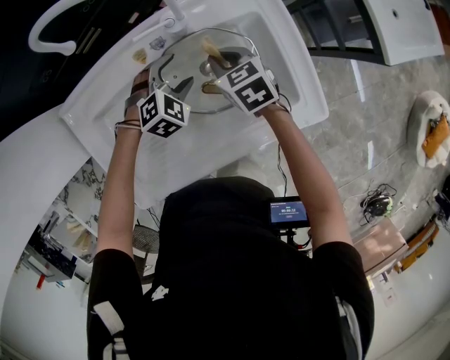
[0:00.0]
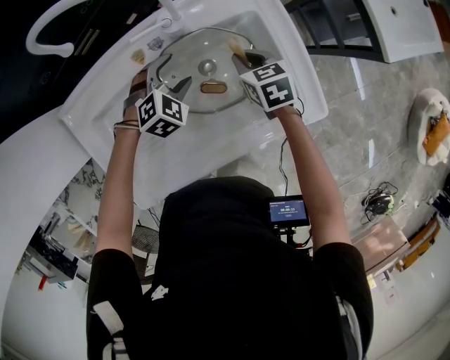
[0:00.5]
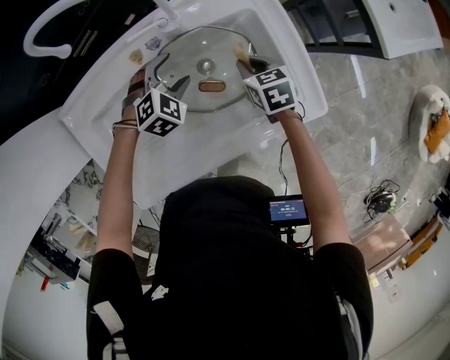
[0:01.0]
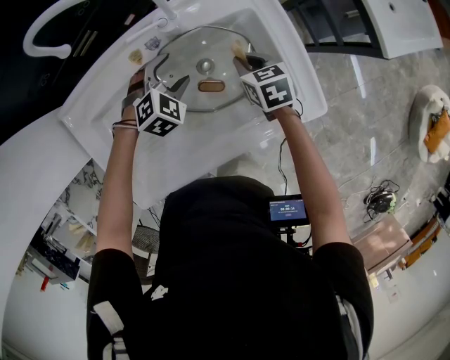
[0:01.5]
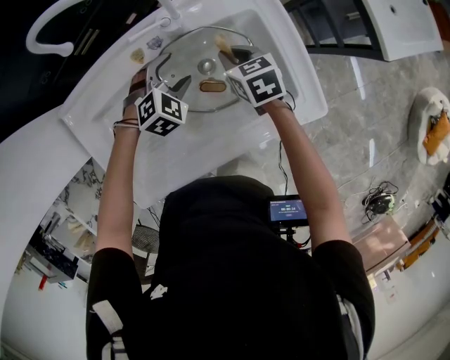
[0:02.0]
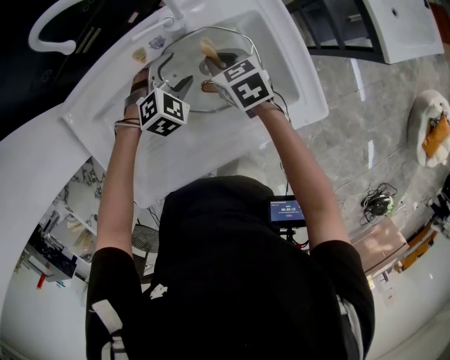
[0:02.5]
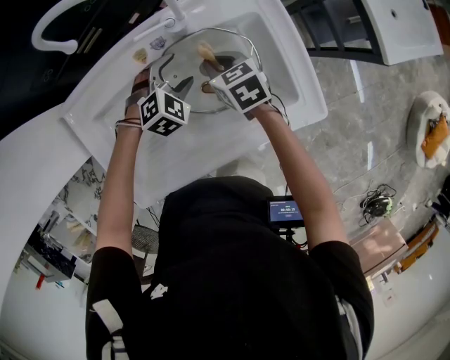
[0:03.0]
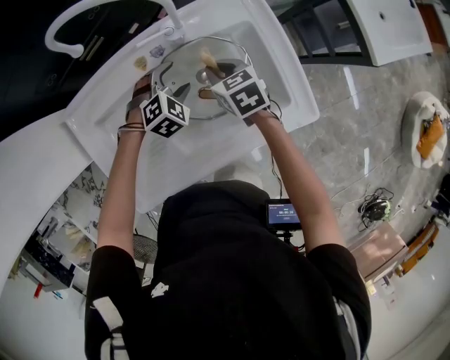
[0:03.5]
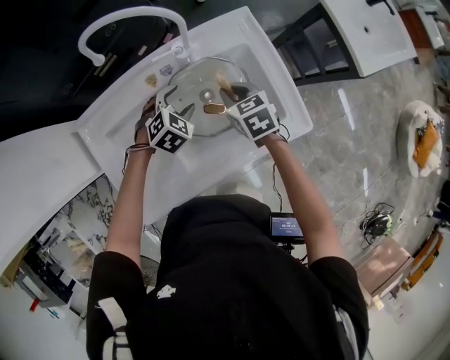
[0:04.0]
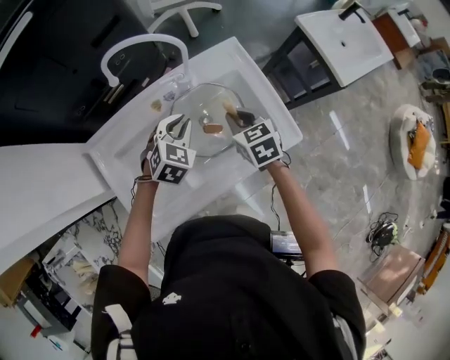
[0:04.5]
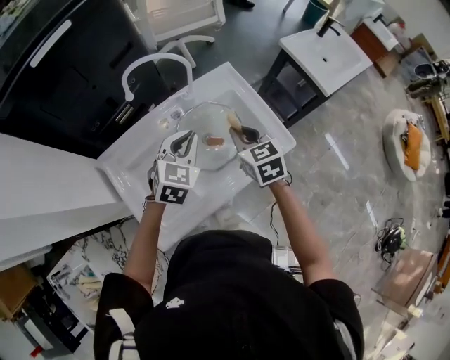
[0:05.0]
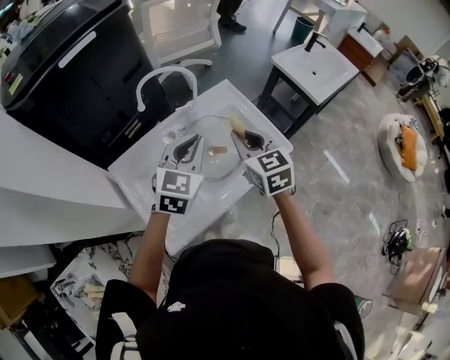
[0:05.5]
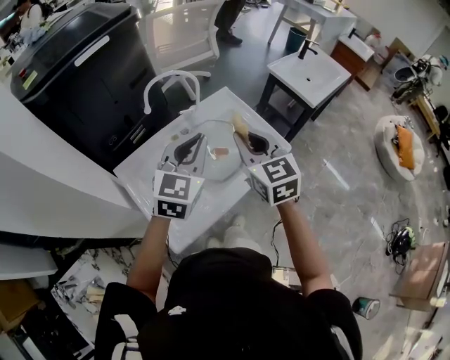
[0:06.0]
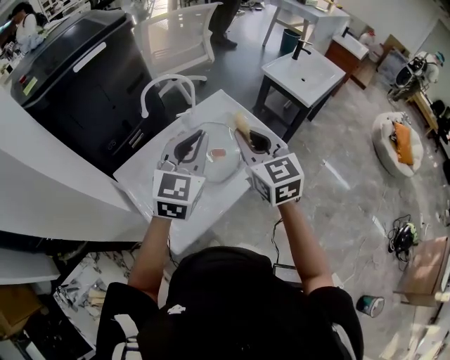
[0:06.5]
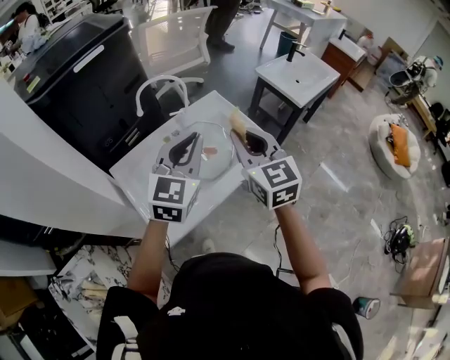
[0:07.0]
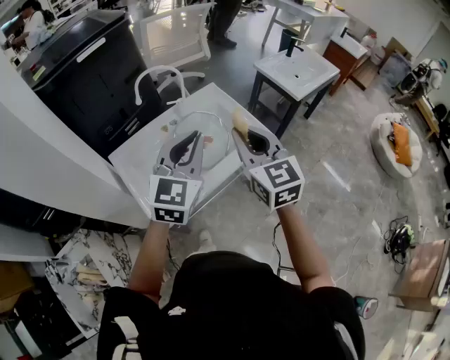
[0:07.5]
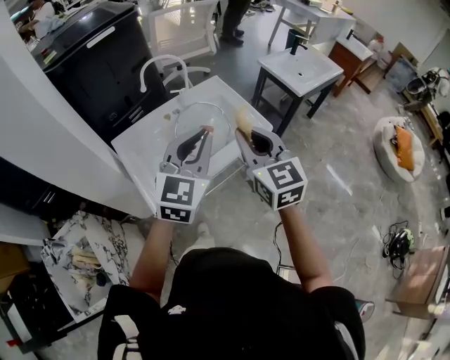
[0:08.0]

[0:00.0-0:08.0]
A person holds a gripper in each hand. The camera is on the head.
0:02.0 to 0:04.0: The right gripper goes some 5 cm upward.
0:04.0 to 0:06.0: Both grippers travel together upward and backward, approximately 35 cm. The left gripper tilts its fingers about 50 degrees upward, and closes up, while the right gripper angles its fingers upward, by roughly 40 degrees.
0:06.0 to 0:08.0: Both grippers move backward and to the right, some 20 cm.

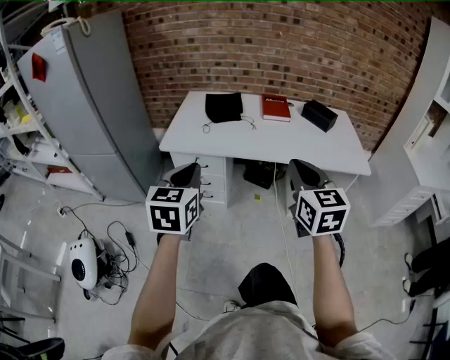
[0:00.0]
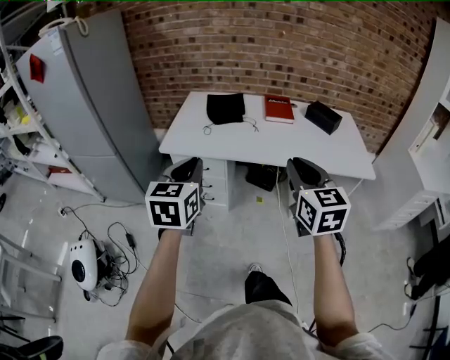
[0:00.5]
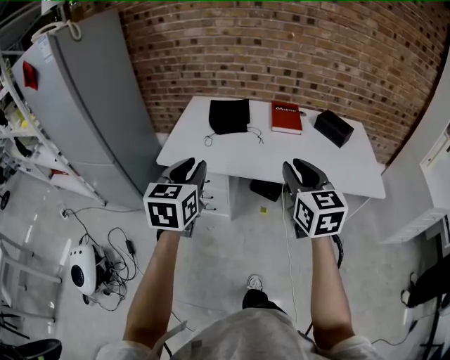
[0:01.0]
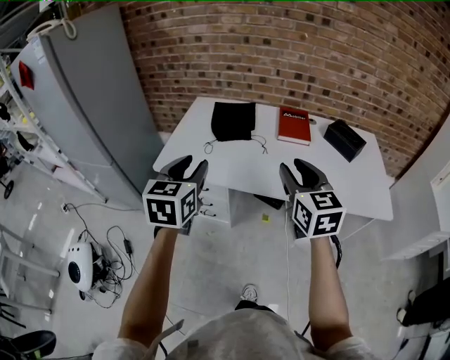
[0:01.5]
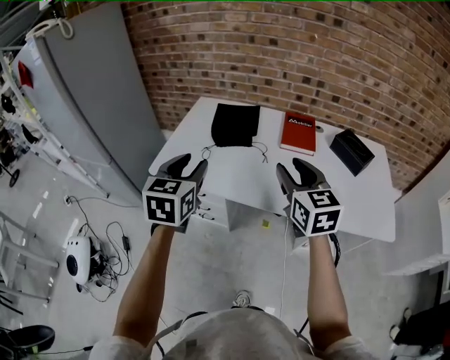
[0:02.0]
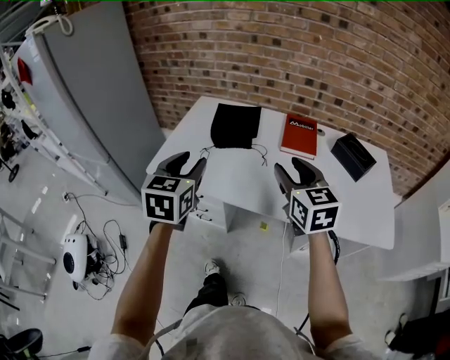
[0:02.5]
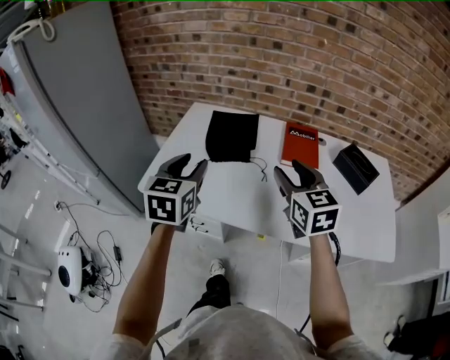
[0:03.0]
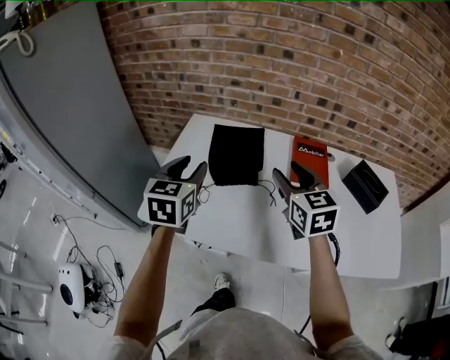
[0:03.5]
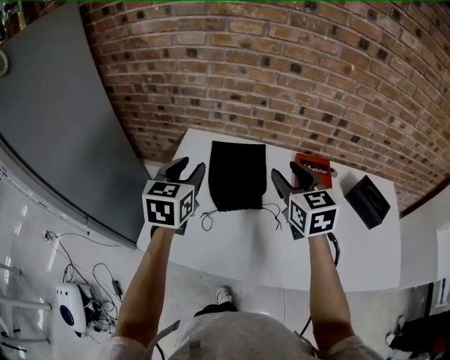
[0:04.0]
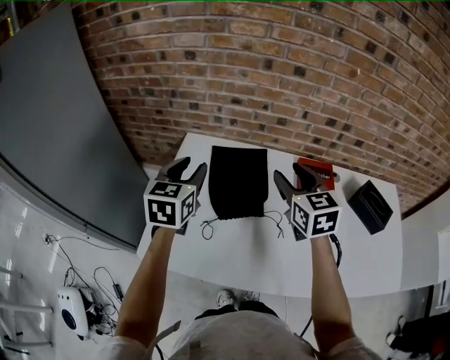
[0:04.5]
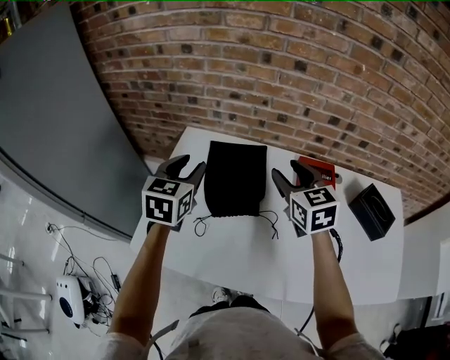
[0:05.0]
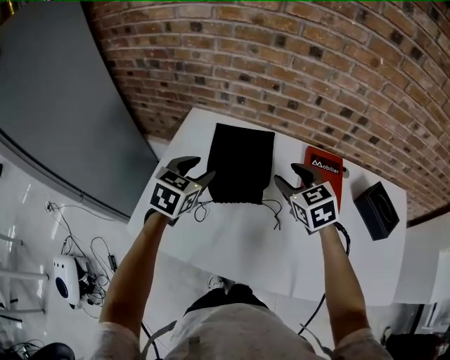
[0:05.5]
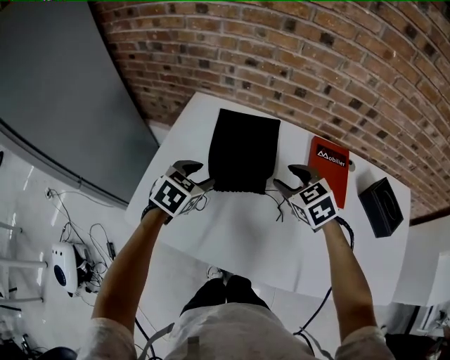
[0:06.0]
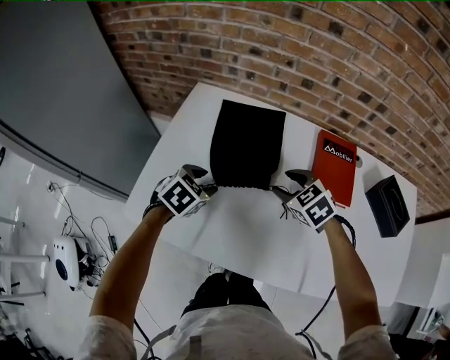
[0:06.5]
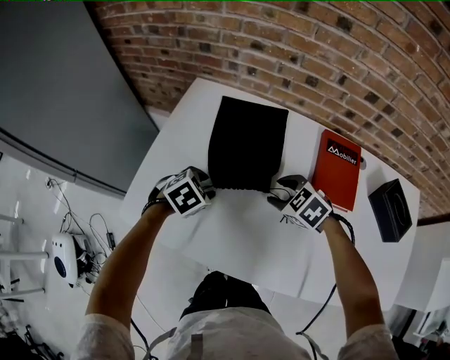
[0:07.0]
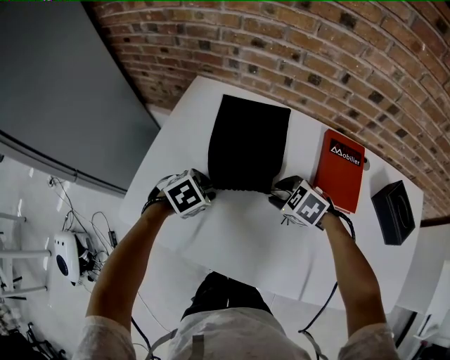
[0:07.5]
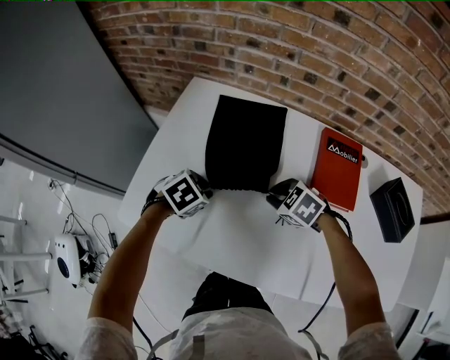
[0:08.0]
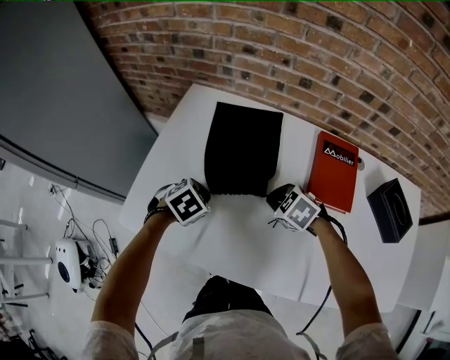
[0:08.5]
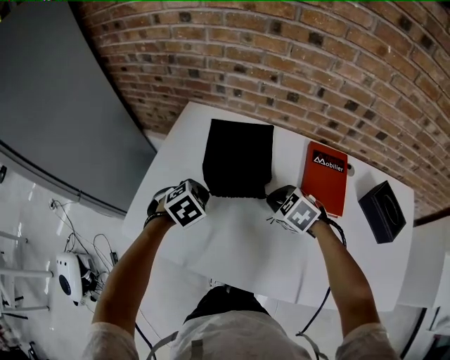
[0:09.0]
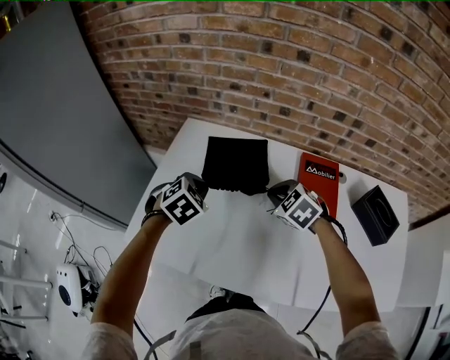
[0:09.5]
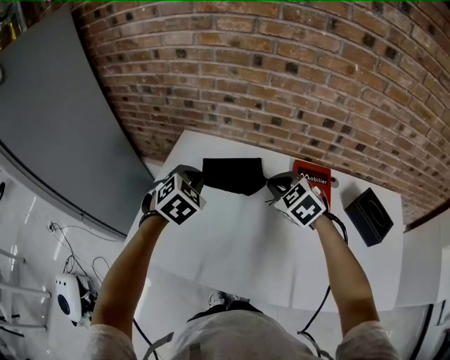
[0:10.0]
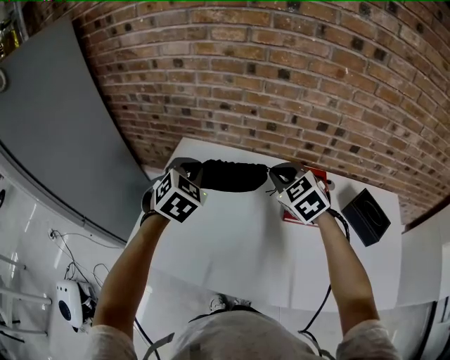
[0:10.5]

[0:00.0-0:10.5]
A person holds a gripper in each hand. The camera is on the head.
0:00.0 to 0:02.0: The grippers both shift forward by about 30 cm. The right gripper opens up; the left gripper opens its fingers.
0:02.0 to 0:04.0: Both grippers move forward, approximately 30 cm.
0:04.0 to 0:06.5: Both grippers travel together downward, some 20 cm. The right gripper angles its fingers downward, by roughly 30 degrees; the left gripper points its fingers about 40 degrees further downward.
0:06.5 to 0:08.5: The right gripper is displaced downward by approximately 5 cm, and closes. Meanwhile the left gripper moves about 5 cm, and closes its fingers.
0:08.5 to 0:10.5: The two grippers go approximately 25 cm upward. The left gripper tips its fingers upward by roughly 30 degrees; the right gripper turns by some 40 degrees.

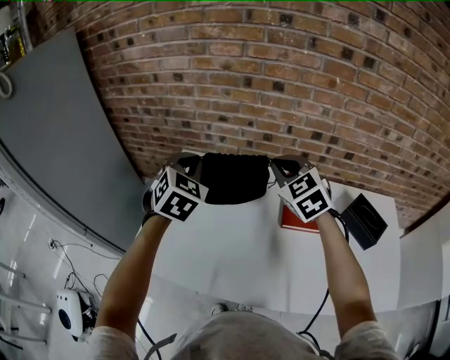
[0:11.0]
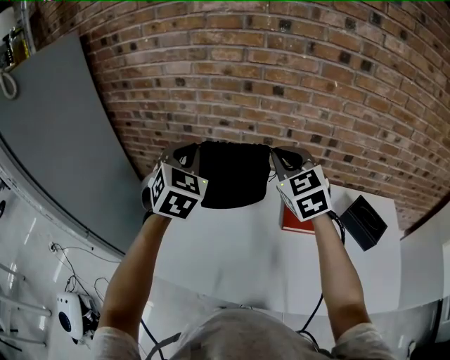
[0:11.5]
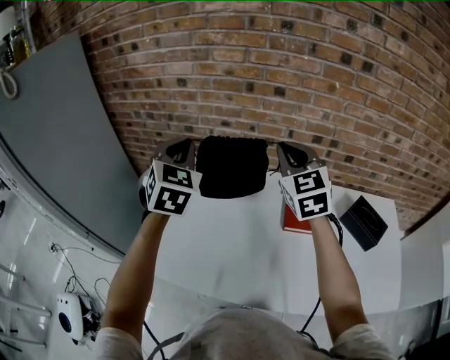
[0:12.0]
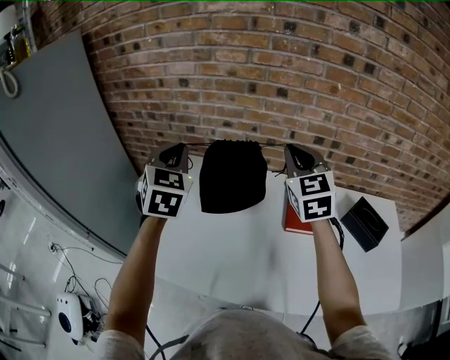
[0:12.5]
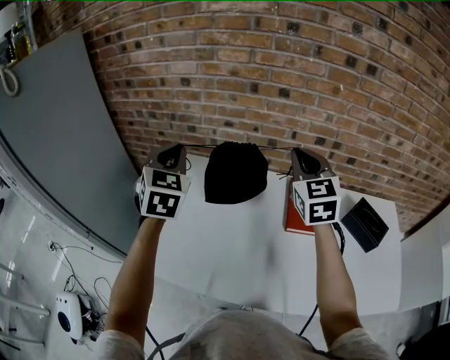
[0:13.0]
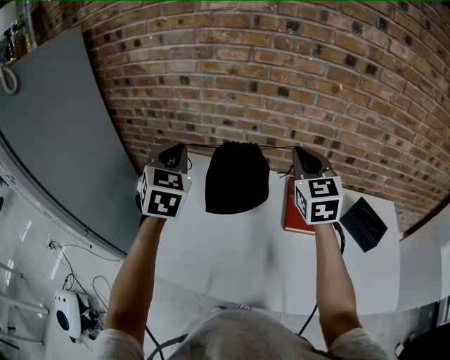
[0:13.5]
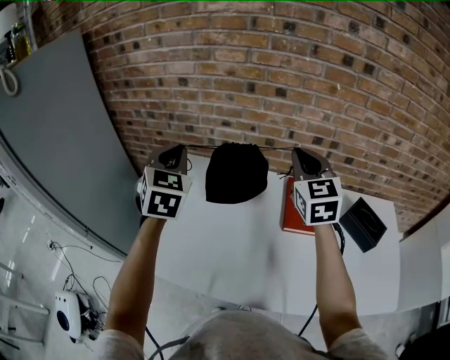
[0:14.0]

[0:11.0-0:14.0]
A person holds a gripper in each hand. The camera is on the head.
0:11.0 to 0:12.5: The right gripper goes roughly 10 cm upward, and turns by about 20 degrees. Meanwhile the left gripper goes approximately 10 cm upward and to the left.
0:12.5 to 0:14.0: The grippers move only a little.

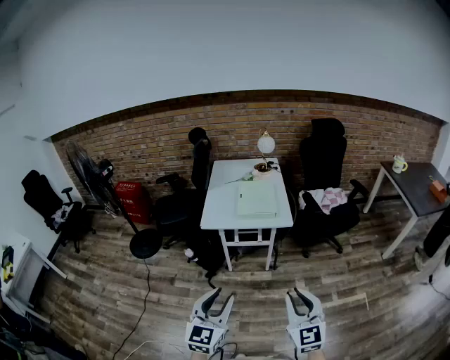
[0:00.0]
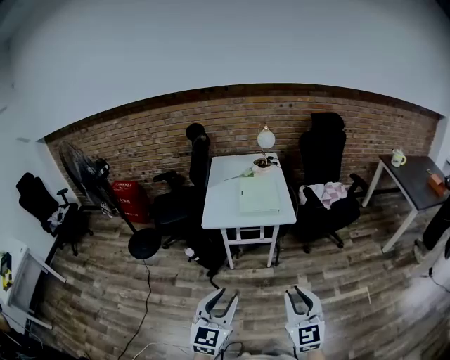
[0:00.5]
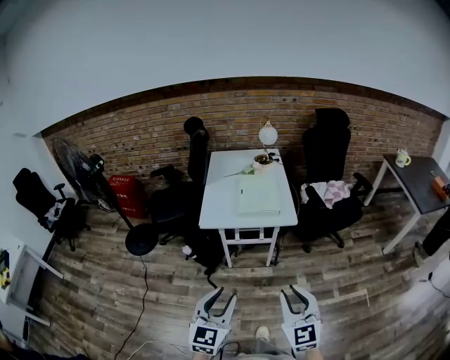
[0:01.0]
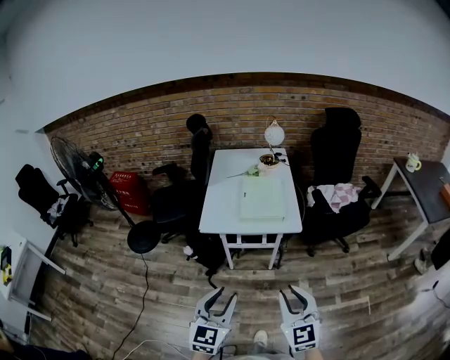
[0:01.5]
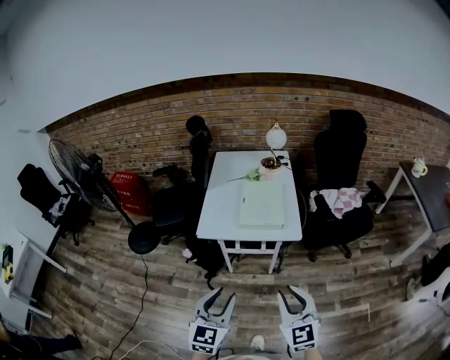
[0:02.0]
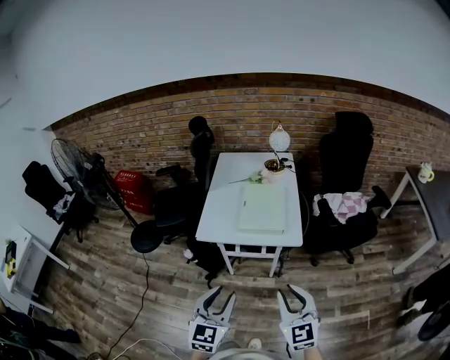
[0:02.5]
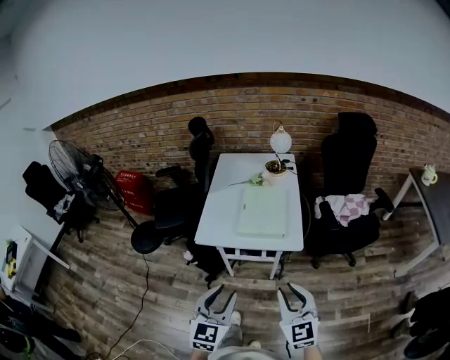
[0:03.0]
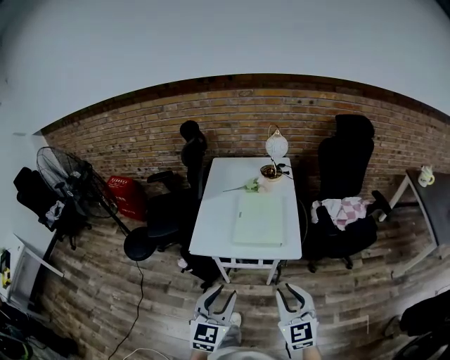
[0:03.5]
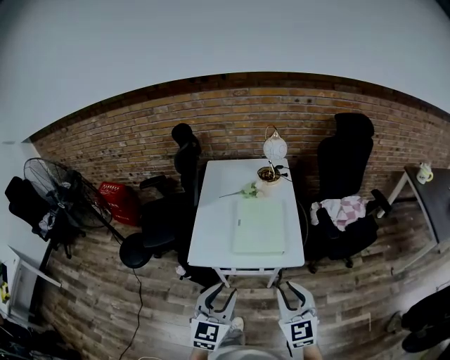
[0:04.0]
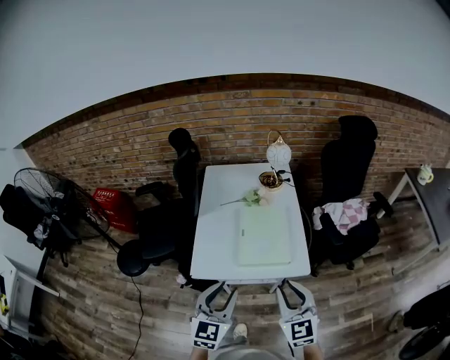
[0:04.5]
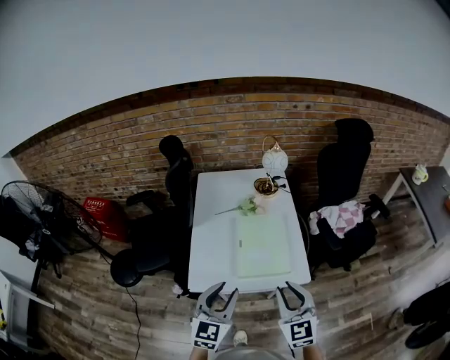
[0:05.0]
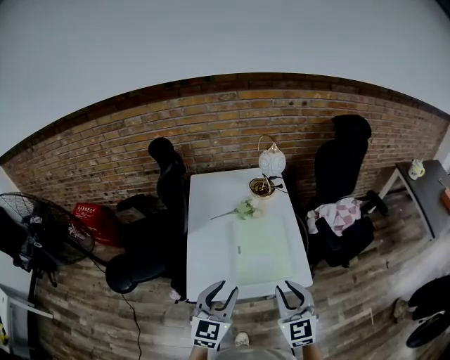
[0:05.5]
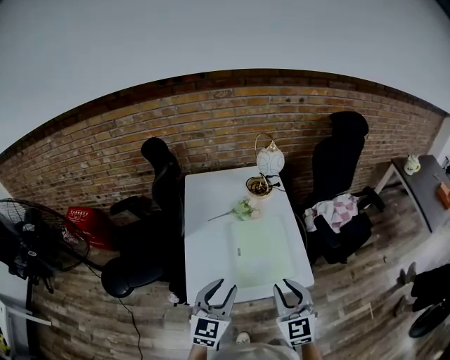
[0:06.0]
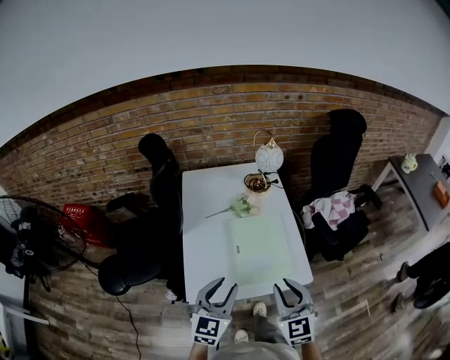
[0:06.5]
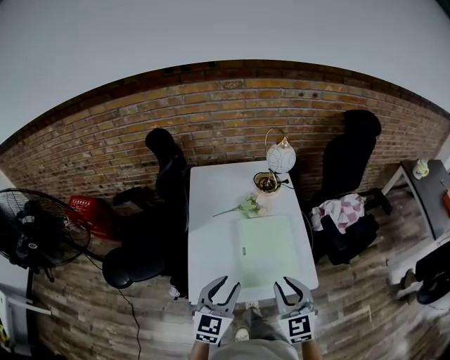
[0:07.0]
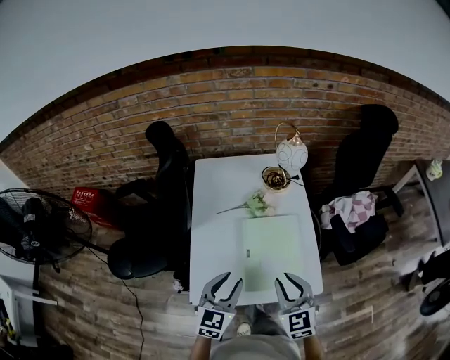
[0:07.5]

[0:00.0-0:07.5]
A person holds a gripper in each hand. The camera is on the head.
0:00.0 to 0:02.0: The grippers both shift forward by about 20 cm.
0:02.0 to 0:04.0: Both grippers travel together forward, approximately 20 cm.
0:04.0 to 0:05.5: The two grippers go approximately 20 cm forward.
0:05.5 to 0:07.5: The grippers both shift forward and downward by about 10 cm.
